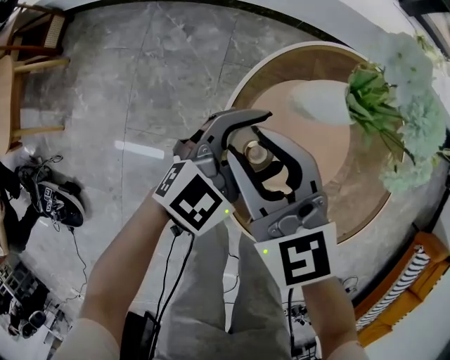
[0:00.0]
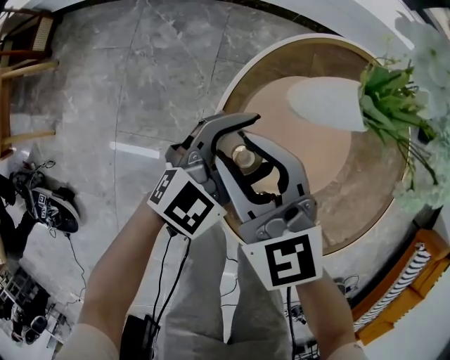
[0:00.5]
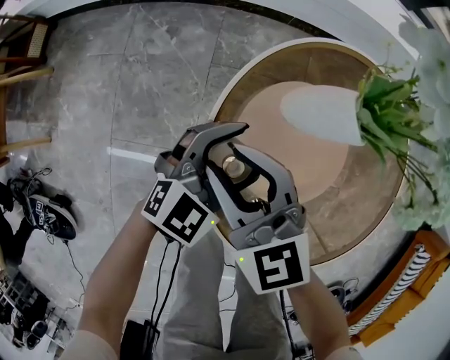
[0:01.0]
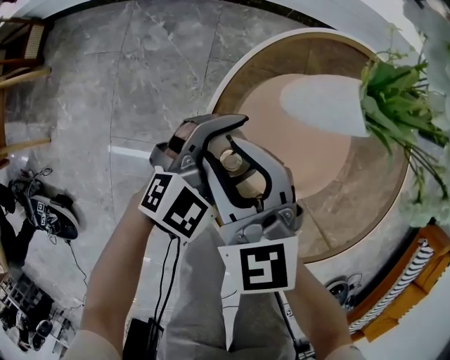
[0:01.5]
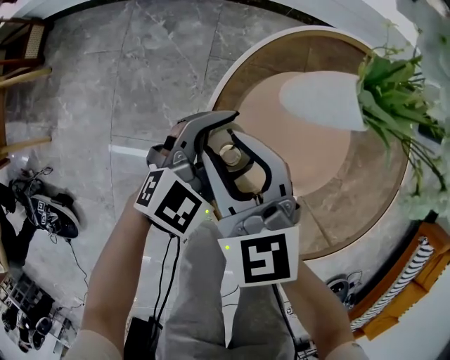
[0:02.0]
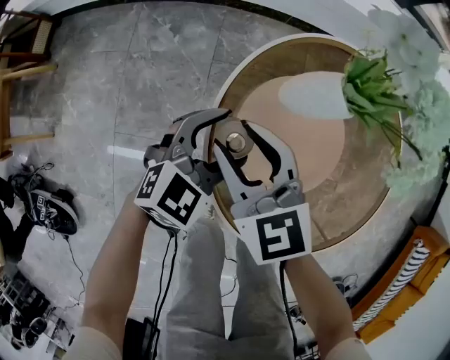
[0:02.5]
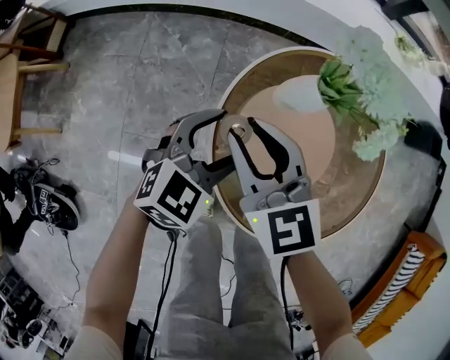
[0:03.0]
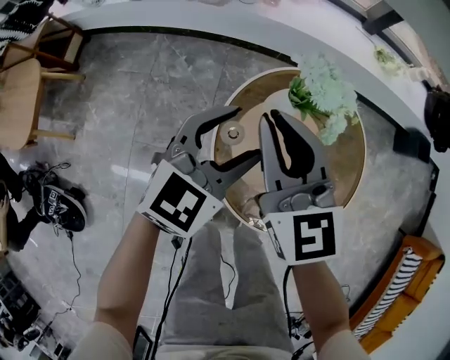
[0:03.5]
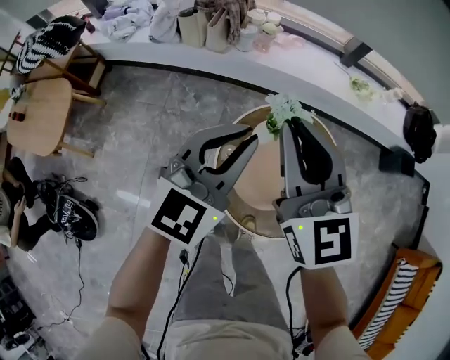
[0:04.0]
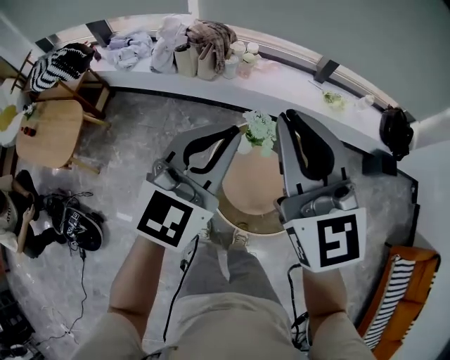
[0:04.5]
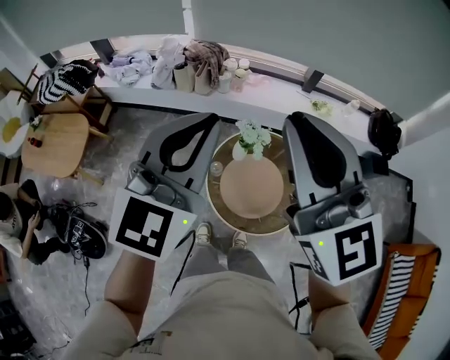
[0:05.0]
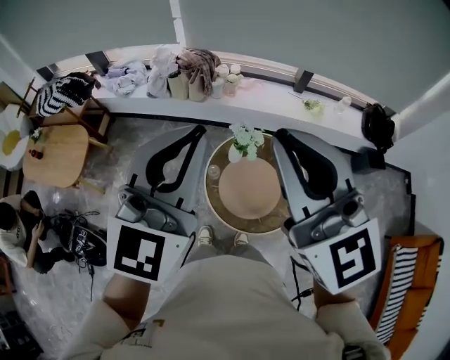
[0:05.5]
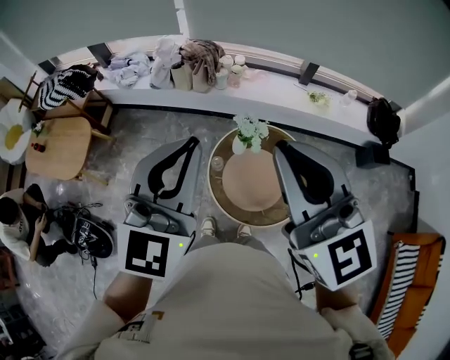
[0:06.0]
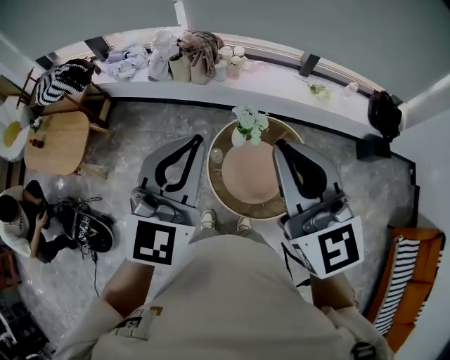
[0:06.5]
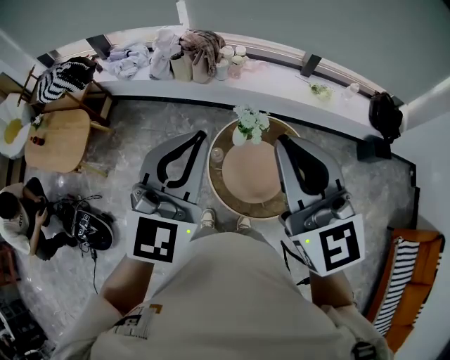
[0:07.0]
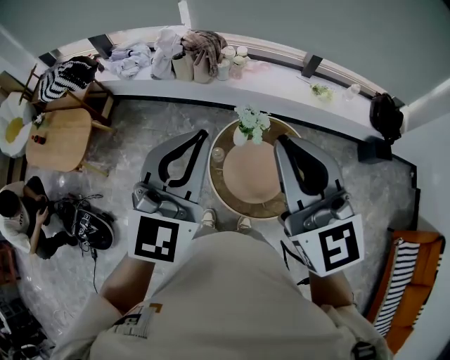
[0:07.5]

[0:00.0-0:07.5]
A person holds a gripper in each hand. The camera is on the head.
0:00.0 to 0:02.0: The grippers both shift downward by about 10 cm.
0:02.0 to 0:04.0: The two grippers go approximately 50 cm upward. The left gripper turns by approximately 30 degrees, and closes up; the right gripper rotates approximately 30 degrees, and closes up.
0:04.0 to 0:05.5: The right gripper moves upward and backward, some 35 cm. Meanwhile the left gripper travels upward by about 35 cm.
0:05.5 to 0:07.5: The grippers both shift downward by approximately 5 cm.

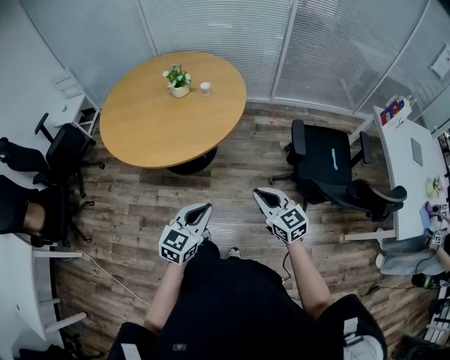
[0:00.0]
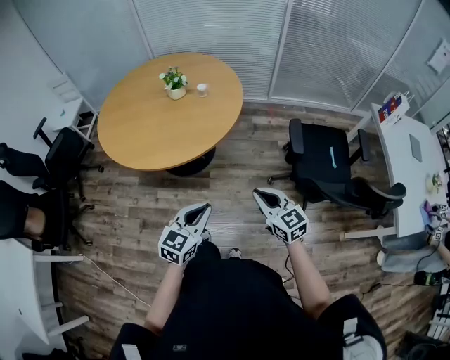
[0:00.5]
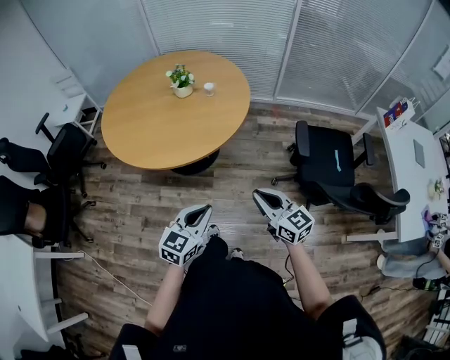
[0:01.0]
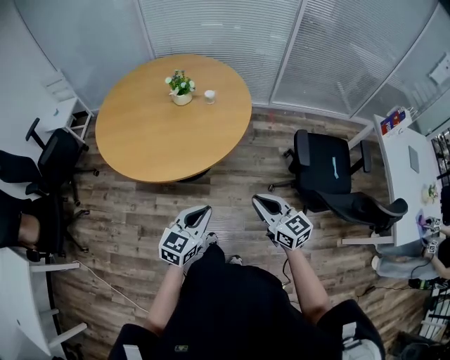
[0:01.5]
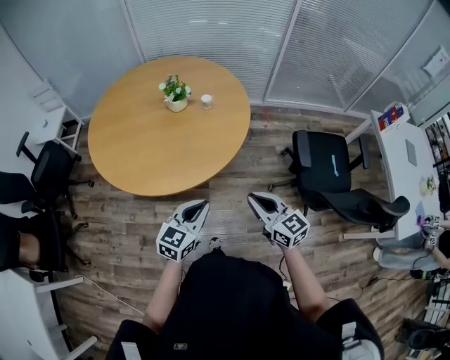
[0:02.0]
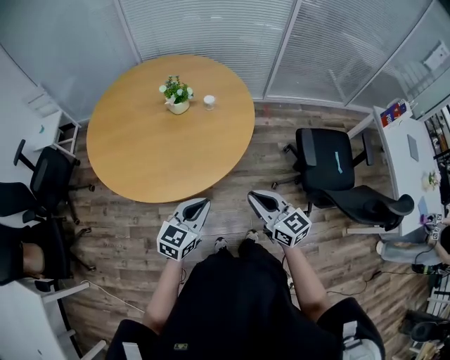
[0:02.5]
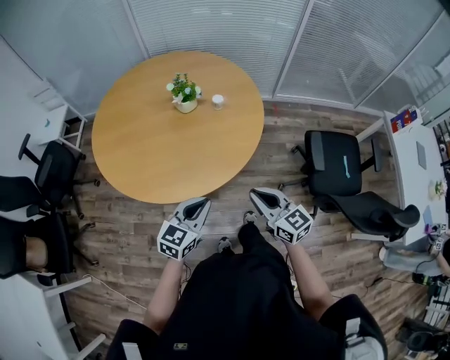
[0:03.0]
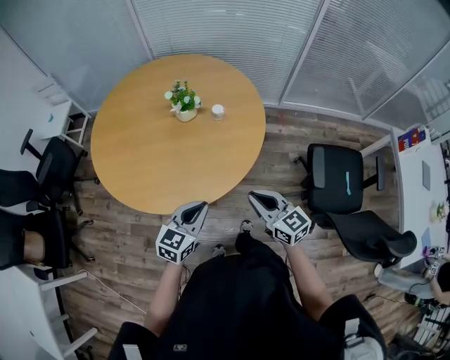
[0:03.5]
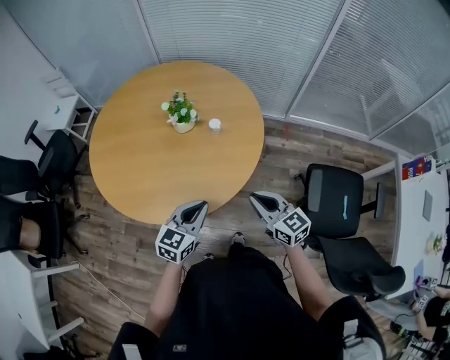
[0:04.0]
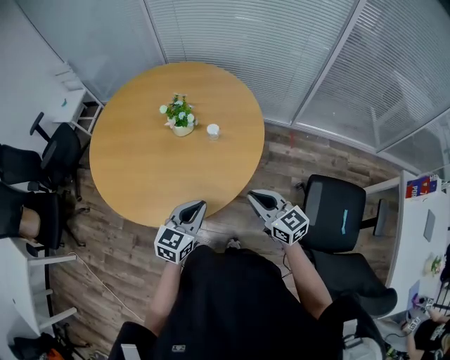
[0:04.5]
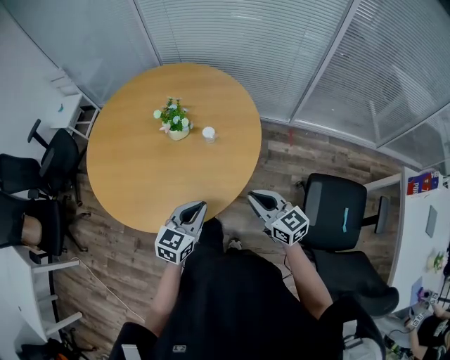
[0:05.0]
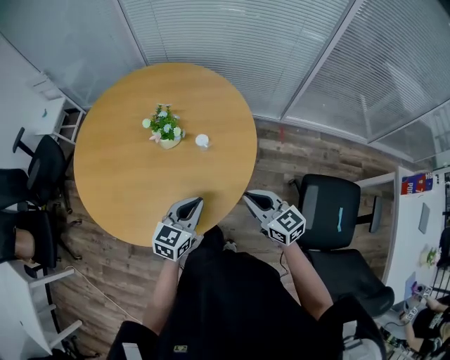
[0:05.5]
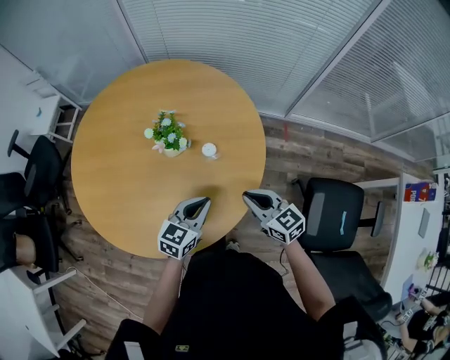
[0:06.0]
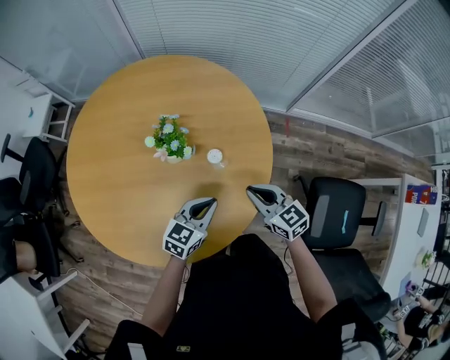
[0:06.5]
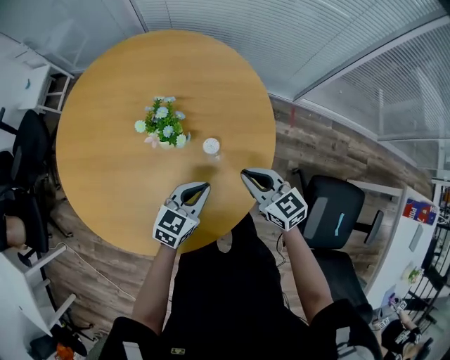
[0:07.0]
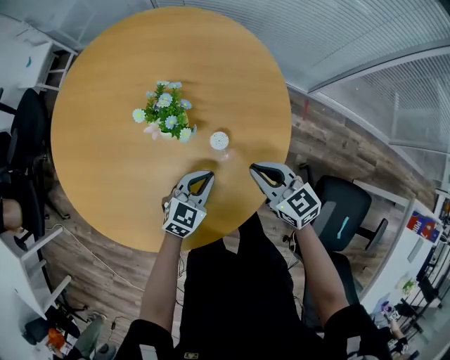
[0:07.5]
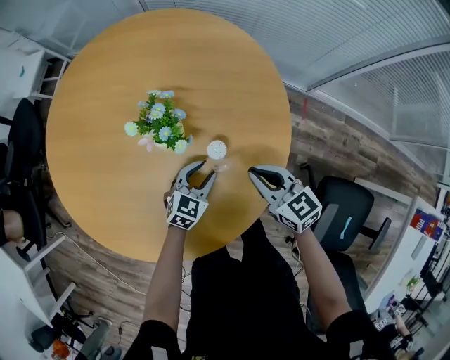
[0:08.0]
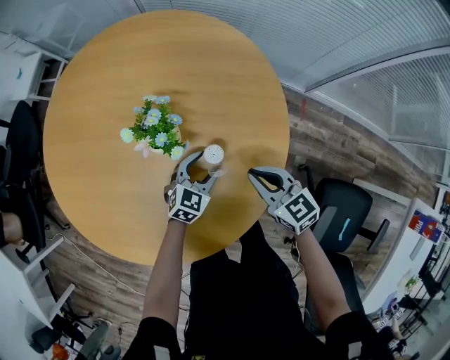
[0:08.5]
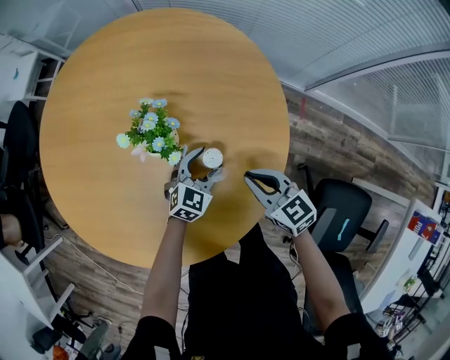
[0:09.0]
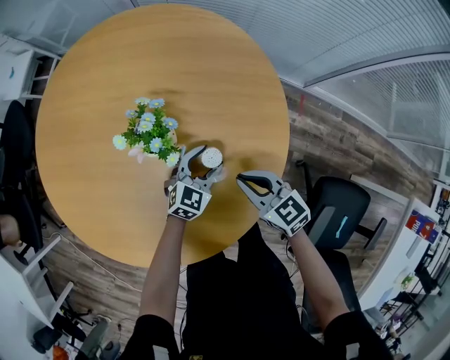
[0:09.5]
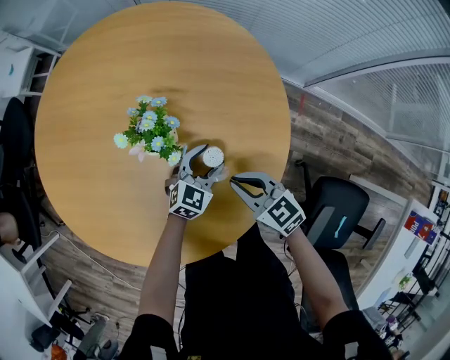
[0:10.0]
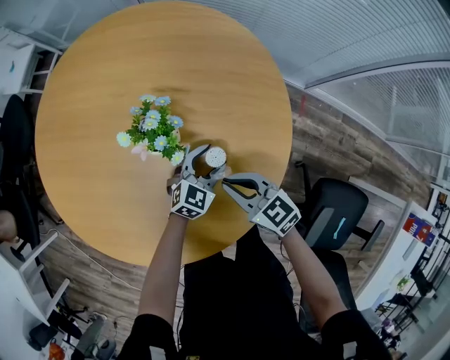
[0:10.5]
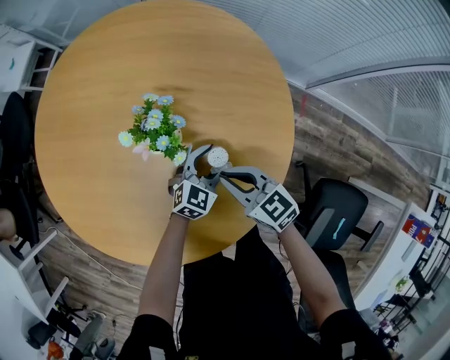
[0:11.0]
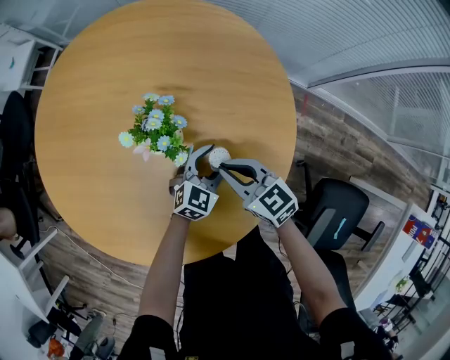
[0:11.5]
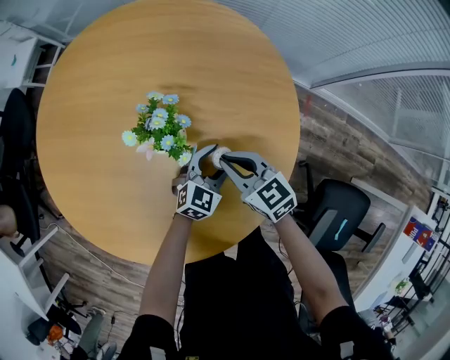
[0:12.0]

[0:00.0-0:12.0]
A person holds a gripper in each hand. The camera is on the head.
0:00.0 to 0:02.0: Both grippers move forward and to the left, some 15 cm.
0:02.0 to 0:04.0: Both grippers move forward, roughly 20 cm.
0:04.0 to 0:06.0: Both grippers travel together forward, approximately 20 cm.
0:06.0 to 0:08.0: The right gripper is displaced forward and downward by about 15 cm, while the left gripper travels downward and forward by roughly 20 cm, and opens its fingers.
0:08.0 to 0:10.0: The left gripper travels forward by approximately 5 cm, while the right gripper moves about 5 cm.
0:10.0 to 0:12.0: The right gripper moves forward, roughly 5 cm.

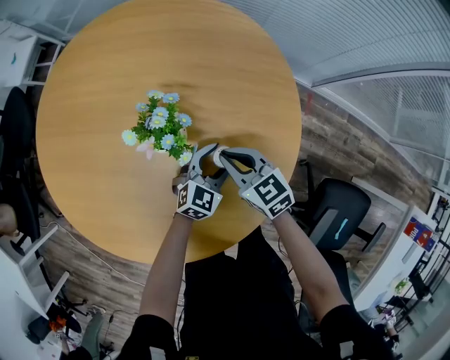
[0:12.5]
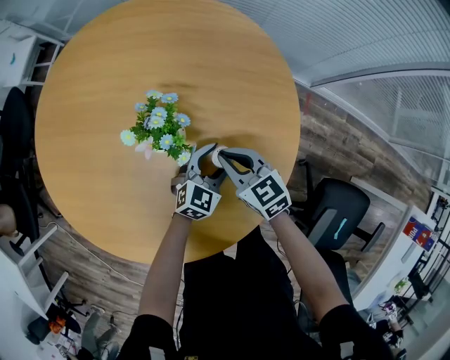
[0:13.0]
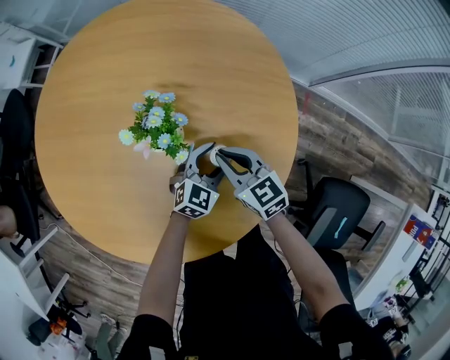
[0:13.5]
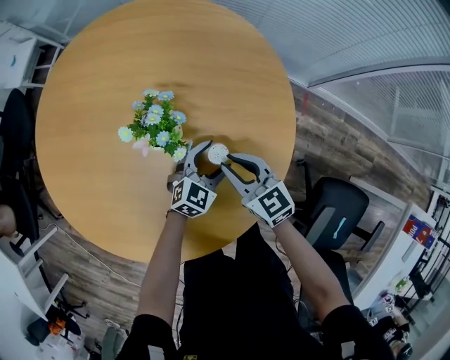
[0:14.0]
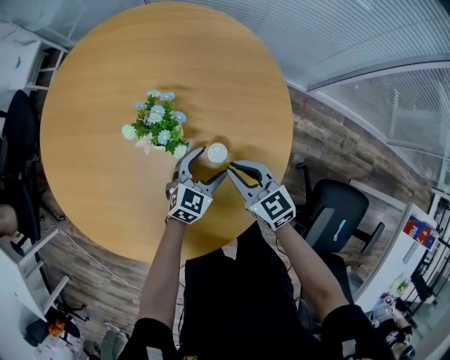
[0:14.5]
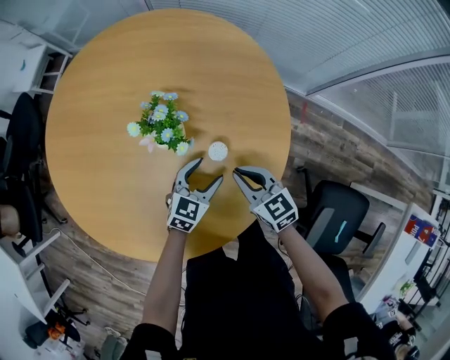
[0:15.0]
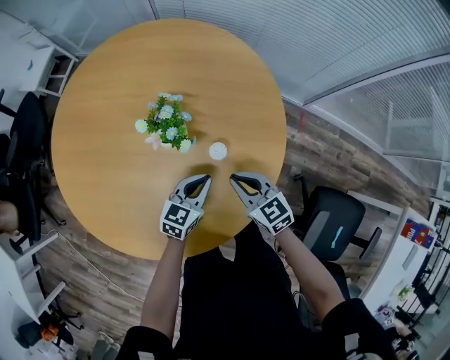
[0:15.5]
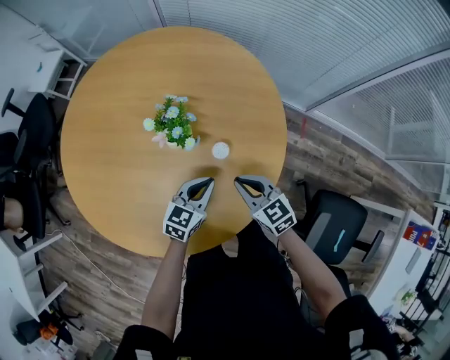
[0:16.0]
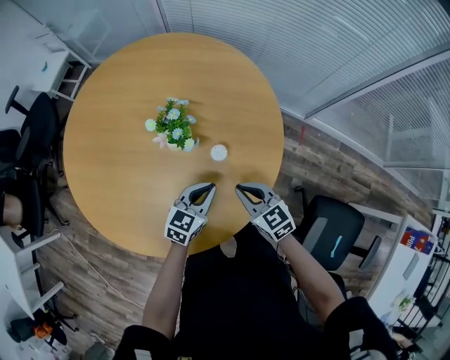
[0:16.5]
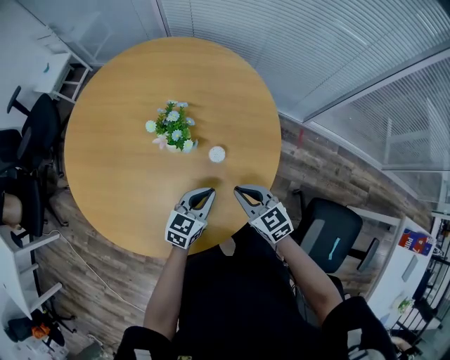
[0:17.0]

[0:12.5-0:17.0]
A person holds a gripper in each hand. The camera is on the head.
0:12.5 to 0:14.5: The right gripper changes place by some 5 cm.
0:14.5 to 0:17.0: The right gripper goes about 10 cm backward; the left gripper is displaced backward and upward by roughly 10 cm, rotates approximately 20 degrees, and closes up.

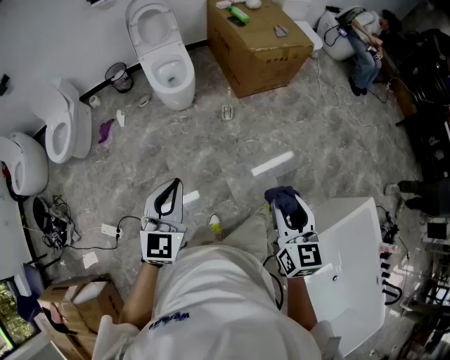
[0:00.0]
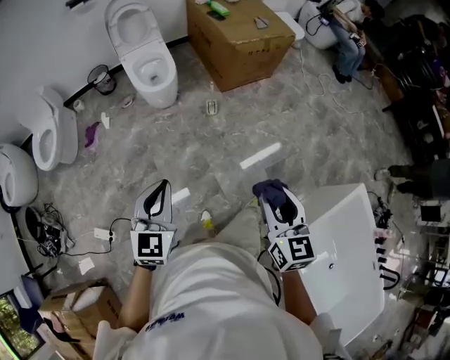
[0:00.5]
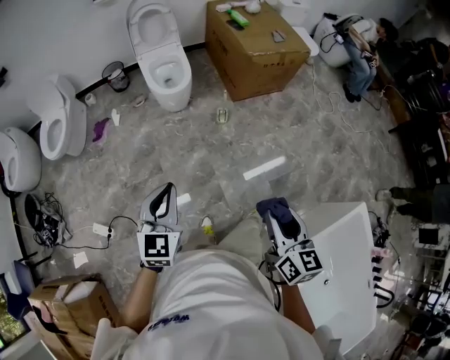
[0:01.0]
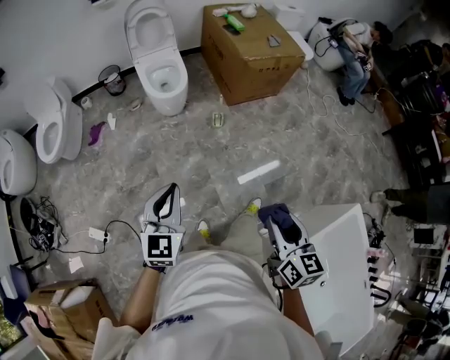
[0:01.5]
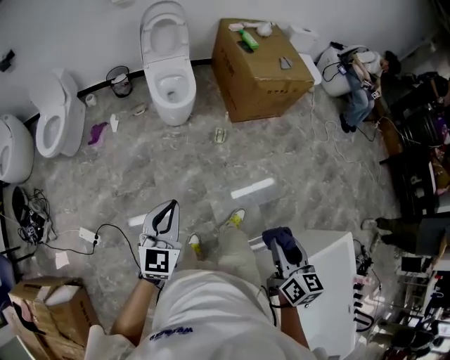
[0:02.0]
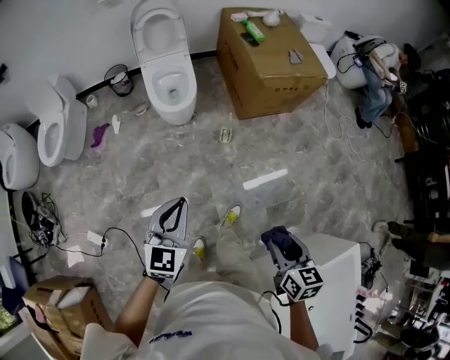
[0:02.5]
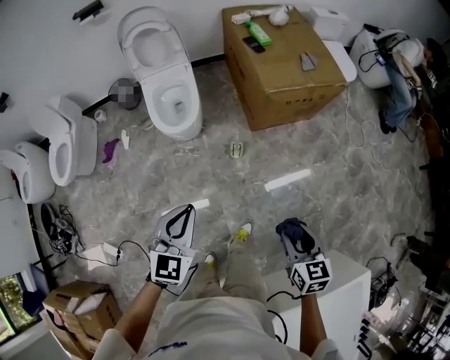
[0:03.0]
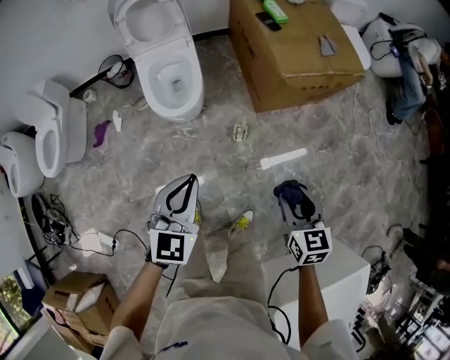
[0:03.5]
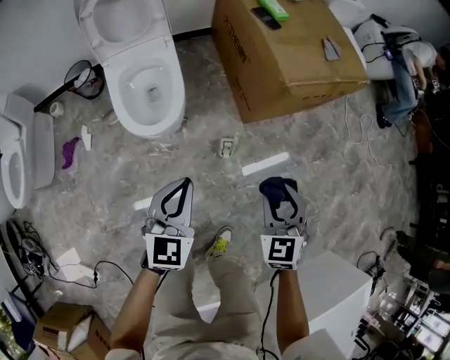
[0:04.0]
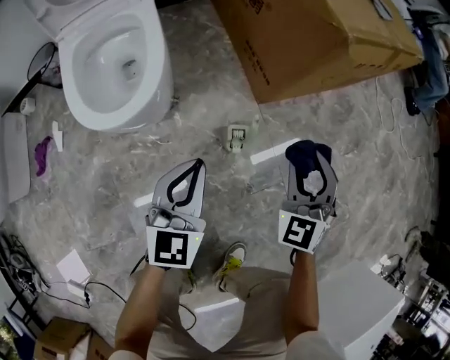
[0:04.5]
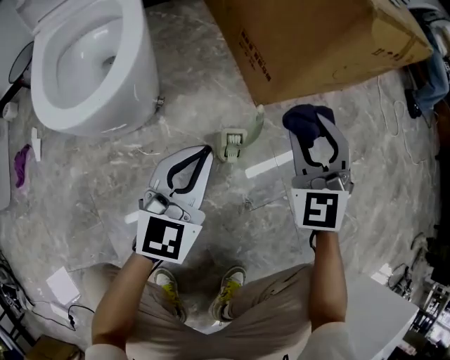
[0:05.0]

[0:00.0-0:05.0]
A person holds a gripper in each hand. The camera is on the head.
0:00.0 to 0:02.5: The left gripper shifts roughly 15 cm forward. The right gripper goes some 15 cm forward and downward, and turns by some 20 degrees.
0:02.5 to 0:05.0: The two grippers travel together, forward, approximately 50 cm. Both grippers travel together downward, some 60 cm. The right gripper rolls counterclockwise, seen from behind, by about 50 degrees.
